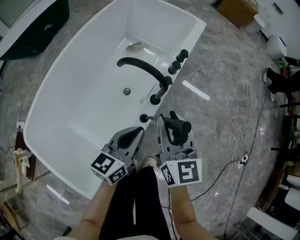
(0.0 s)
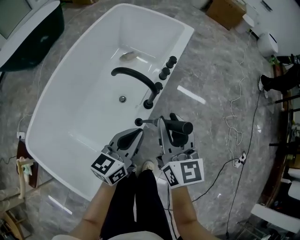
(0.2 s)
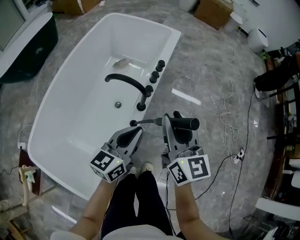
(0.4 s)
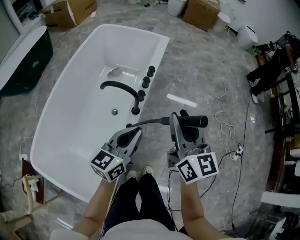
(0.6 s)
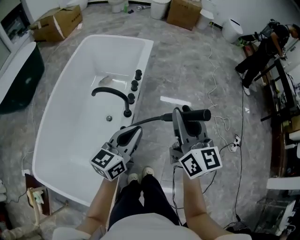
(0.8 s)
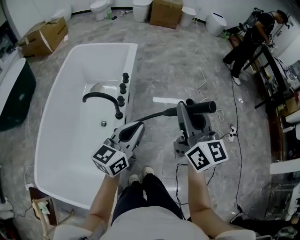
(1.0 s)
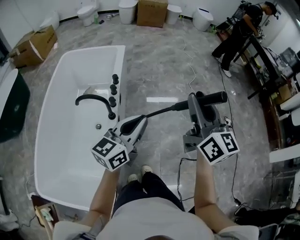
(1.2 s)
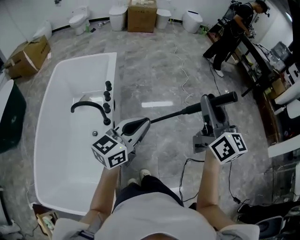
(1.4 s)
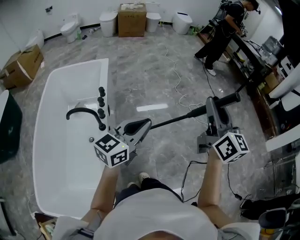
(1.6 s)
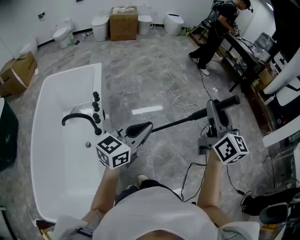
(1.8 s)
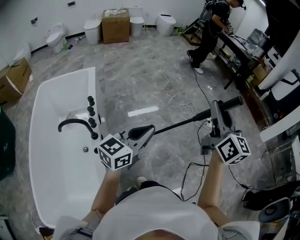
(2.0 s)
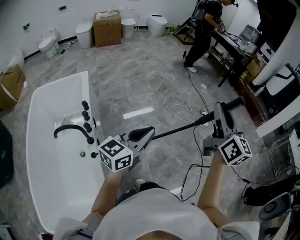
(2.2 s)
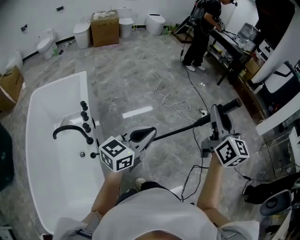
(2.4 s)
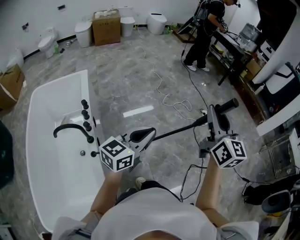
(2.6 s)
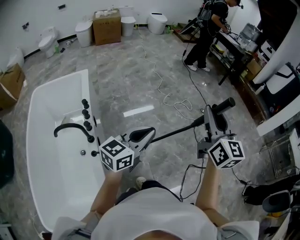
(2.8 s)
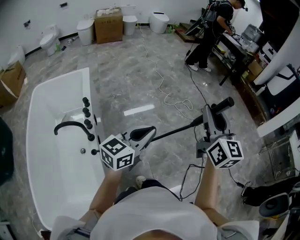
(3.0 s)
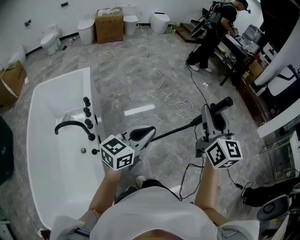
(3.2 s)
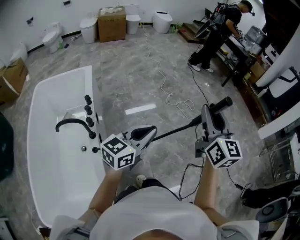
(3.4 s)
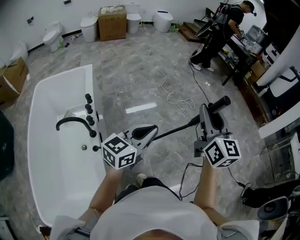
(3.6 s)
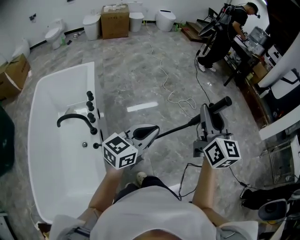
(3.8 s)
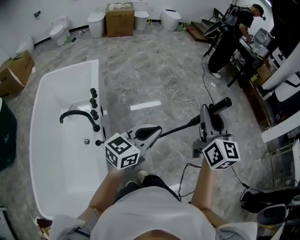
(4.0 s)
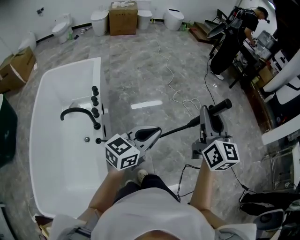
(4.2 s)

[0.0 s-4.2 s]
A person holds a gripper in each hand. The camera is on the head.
0.0 to 1.4 s: The right gripper ends up roughly 50 cm from where it was, and turns by about 40 degrees, while the left gripper is displaced upward by roughly 25 cm, and rotates about 50 degrees.
1.4 to 2.8 s: The grippers both shift to the right by some 10 cm. The right gripper rotates approximately 20 degrees.
2.8 to 4.2 s: The right gripper moves approximately 5 cm.

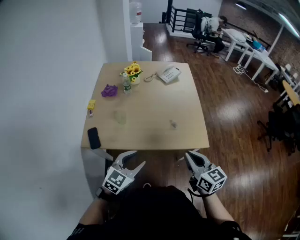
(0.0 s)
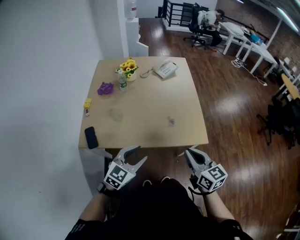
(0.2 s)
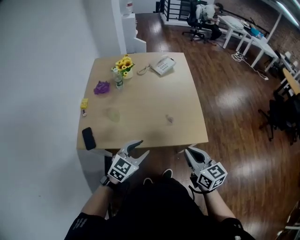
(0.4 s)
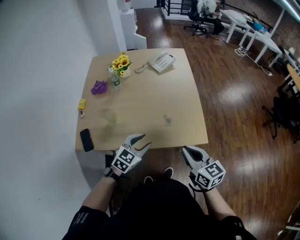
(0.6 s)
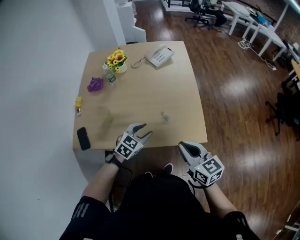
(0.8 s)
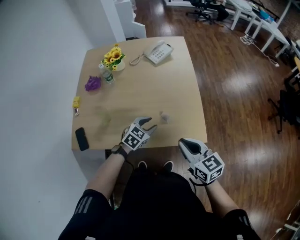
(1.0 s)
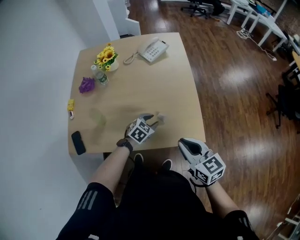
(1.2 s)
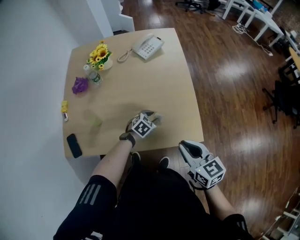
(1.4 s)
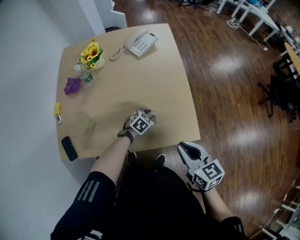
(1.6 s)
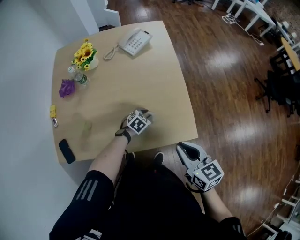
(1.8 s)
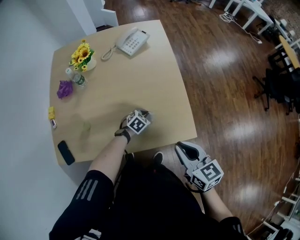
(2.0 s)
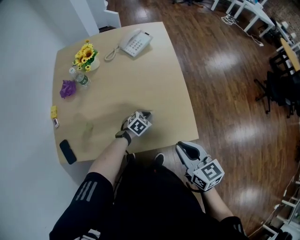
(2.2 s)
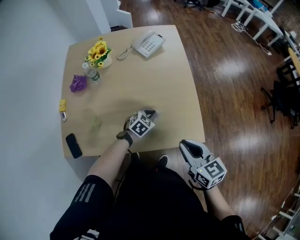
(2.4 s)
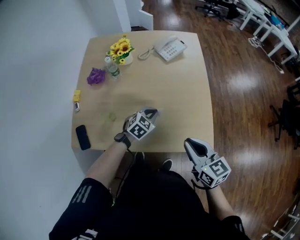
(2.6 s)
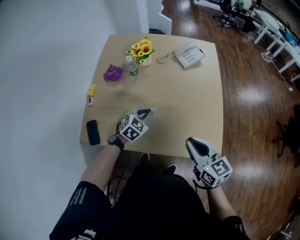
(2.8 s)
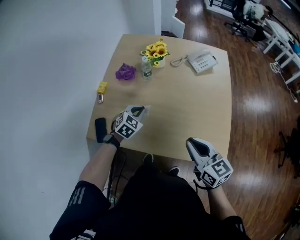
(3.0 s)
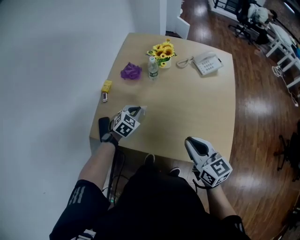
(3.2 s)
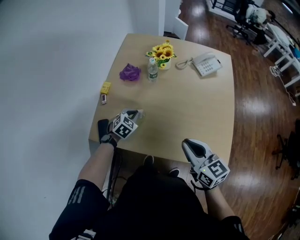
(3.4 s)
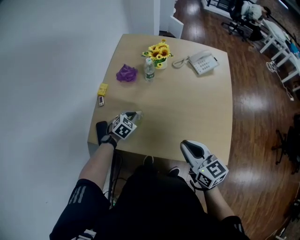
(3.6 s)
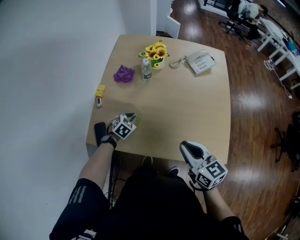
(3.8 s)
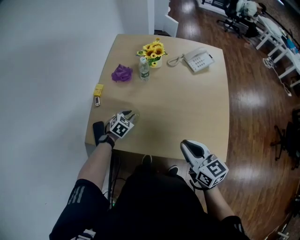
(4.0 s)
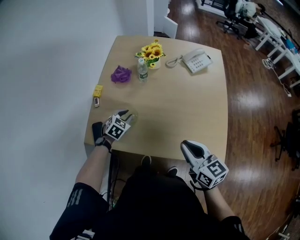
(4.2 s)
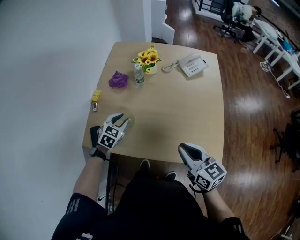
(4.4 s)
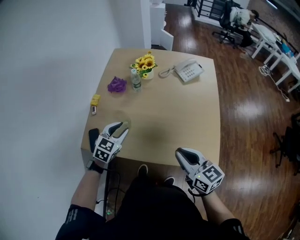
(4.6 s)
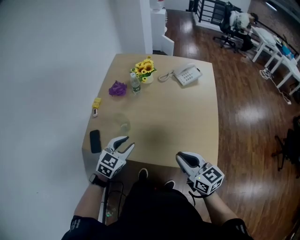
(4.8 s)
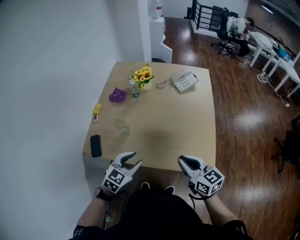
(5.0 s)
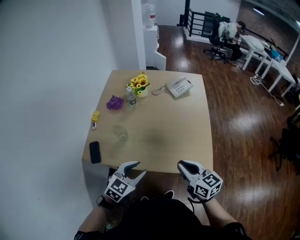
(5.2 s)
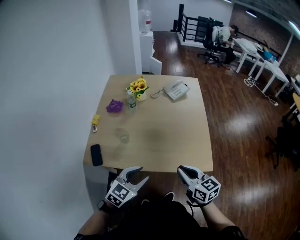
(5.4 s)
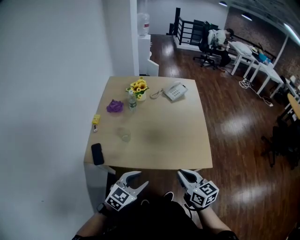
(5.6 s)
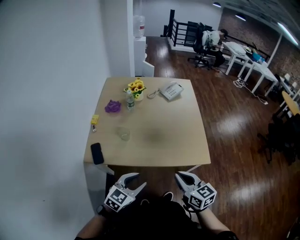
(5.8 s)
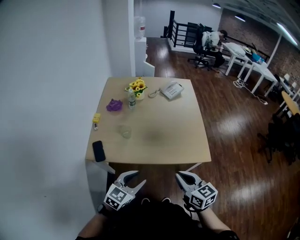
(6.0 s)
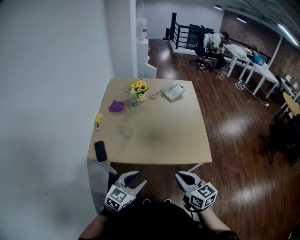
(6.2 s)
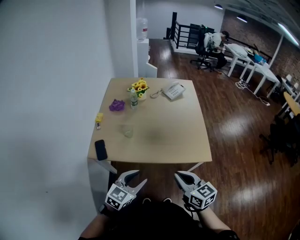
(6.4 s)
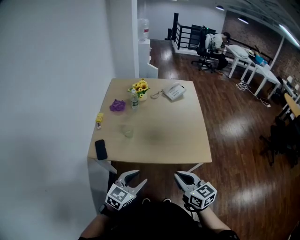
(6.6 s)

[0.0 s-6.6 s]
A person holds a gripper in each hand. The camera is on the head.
0.0 to 1.6 s: The right gripper shifts approximately 20 cm forward, to the right and downward. Meanwhile the left gripper travels forward, downward and to the right by some 50 cm, and angles its fingers downward, by some 30 degrees.
1.6 to 3.2 s: The left gripper moves about 40 cm, changes its angle by approximately 30 degrees, and closes up; the right gripper shifts by roughly 25 cm, and swivels some 20 degrees.
3.2 to 5.0 s: The left gripper is displaced backward, upward and to the right by approximately 25 cm, and opens its fingers. Meanwhile the right gripper travels backward and to the right by about 10 cm.
5.0 to 6.6 s: Both grippers move backward, some 20 cm.

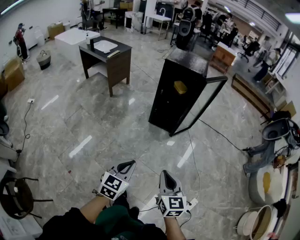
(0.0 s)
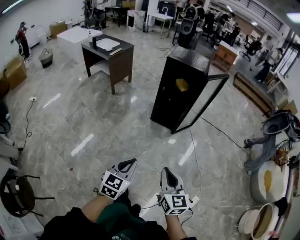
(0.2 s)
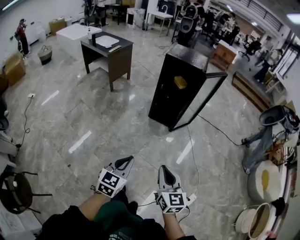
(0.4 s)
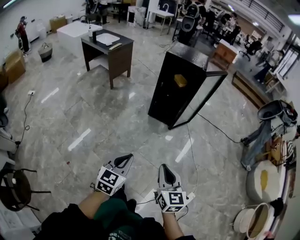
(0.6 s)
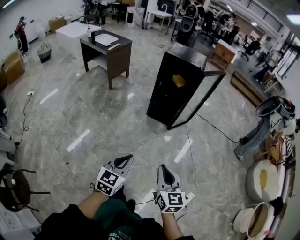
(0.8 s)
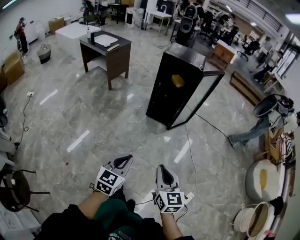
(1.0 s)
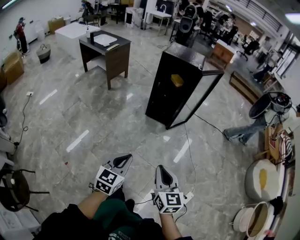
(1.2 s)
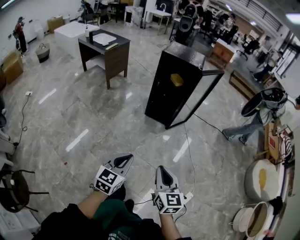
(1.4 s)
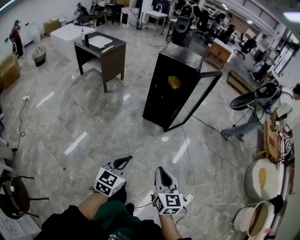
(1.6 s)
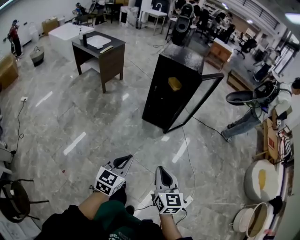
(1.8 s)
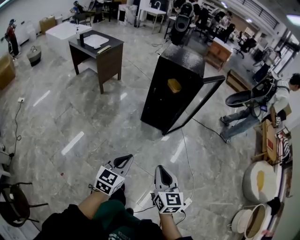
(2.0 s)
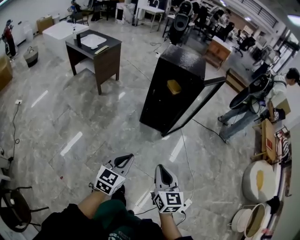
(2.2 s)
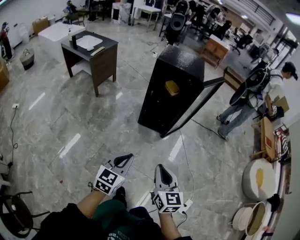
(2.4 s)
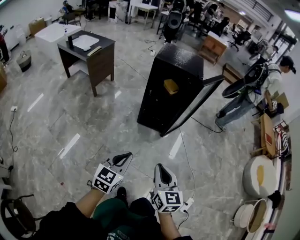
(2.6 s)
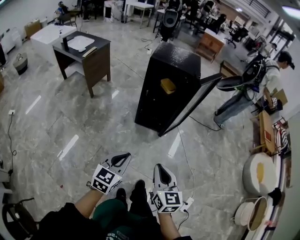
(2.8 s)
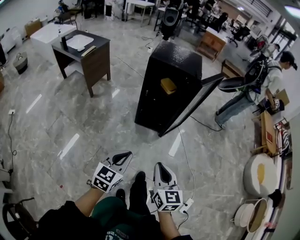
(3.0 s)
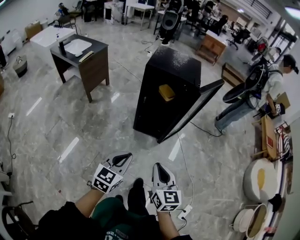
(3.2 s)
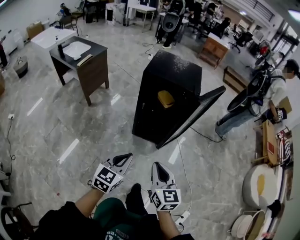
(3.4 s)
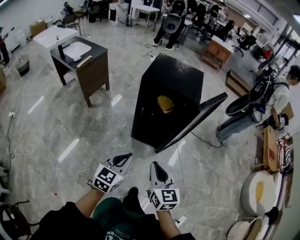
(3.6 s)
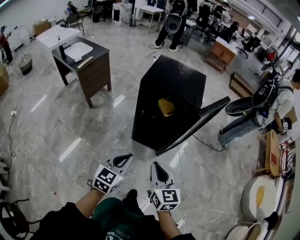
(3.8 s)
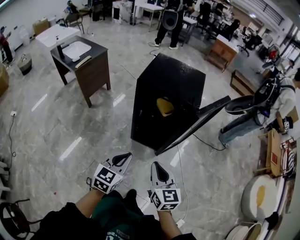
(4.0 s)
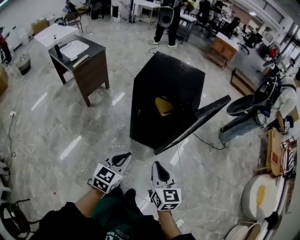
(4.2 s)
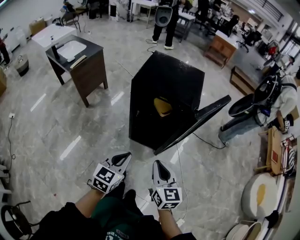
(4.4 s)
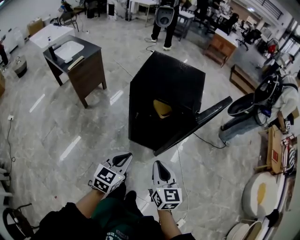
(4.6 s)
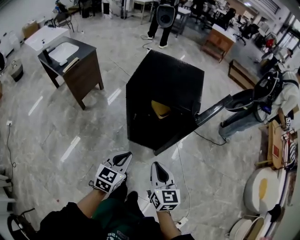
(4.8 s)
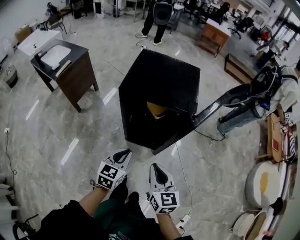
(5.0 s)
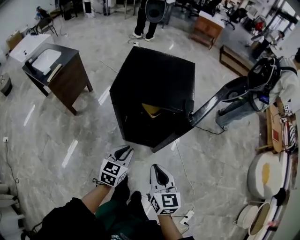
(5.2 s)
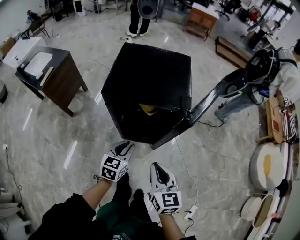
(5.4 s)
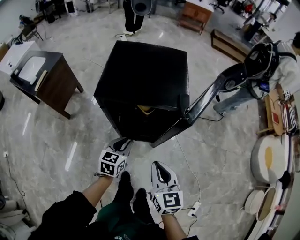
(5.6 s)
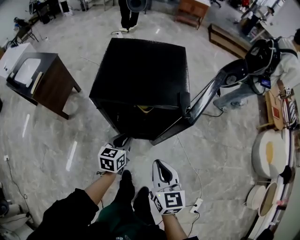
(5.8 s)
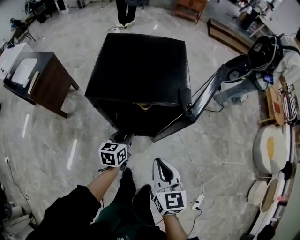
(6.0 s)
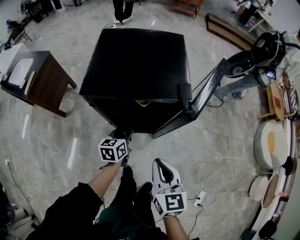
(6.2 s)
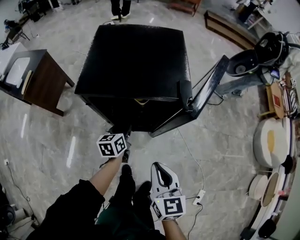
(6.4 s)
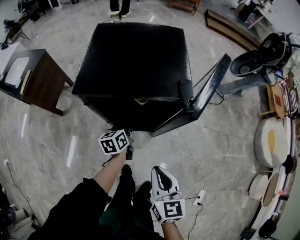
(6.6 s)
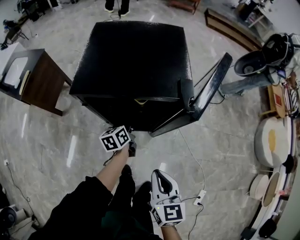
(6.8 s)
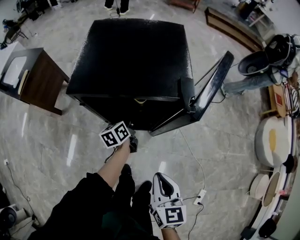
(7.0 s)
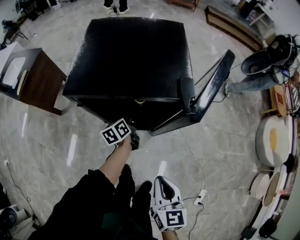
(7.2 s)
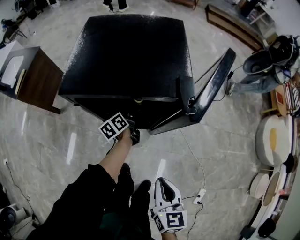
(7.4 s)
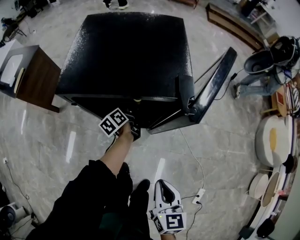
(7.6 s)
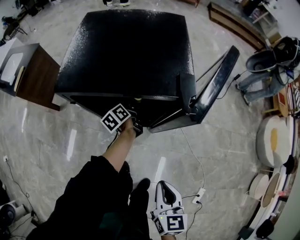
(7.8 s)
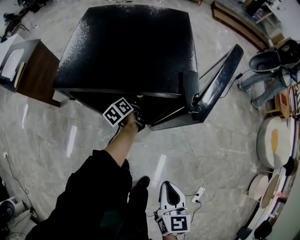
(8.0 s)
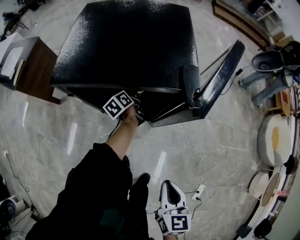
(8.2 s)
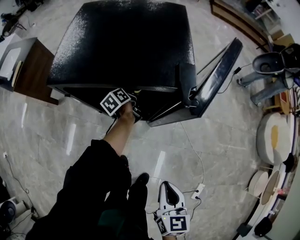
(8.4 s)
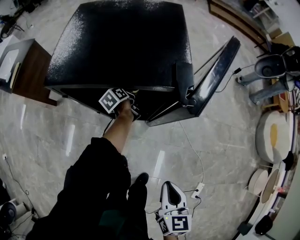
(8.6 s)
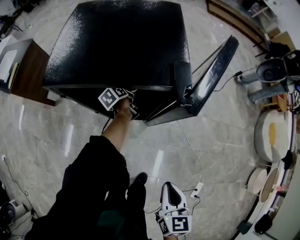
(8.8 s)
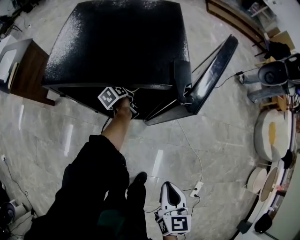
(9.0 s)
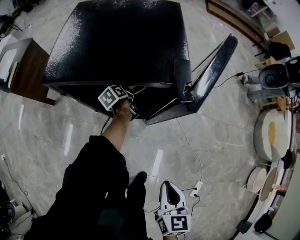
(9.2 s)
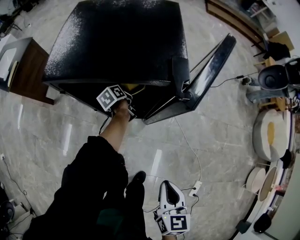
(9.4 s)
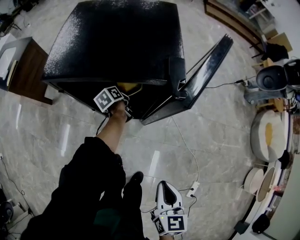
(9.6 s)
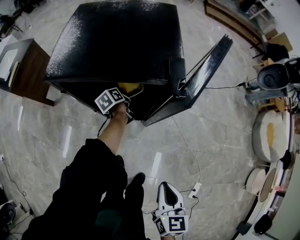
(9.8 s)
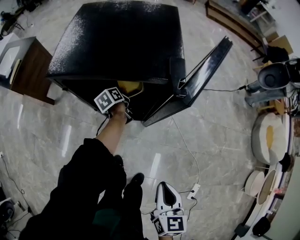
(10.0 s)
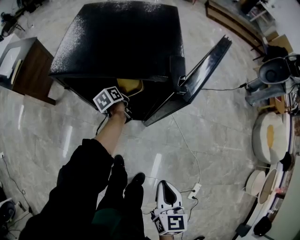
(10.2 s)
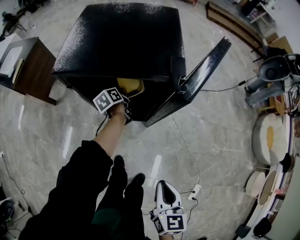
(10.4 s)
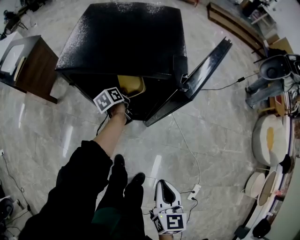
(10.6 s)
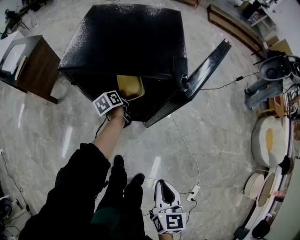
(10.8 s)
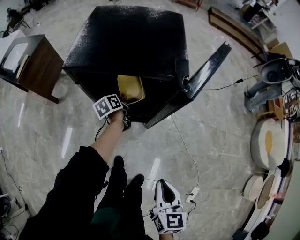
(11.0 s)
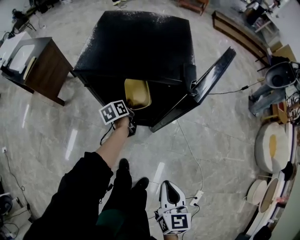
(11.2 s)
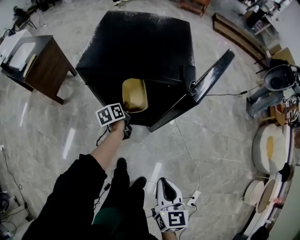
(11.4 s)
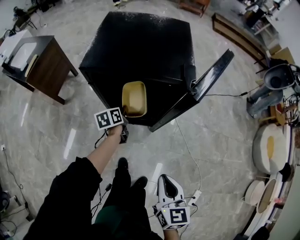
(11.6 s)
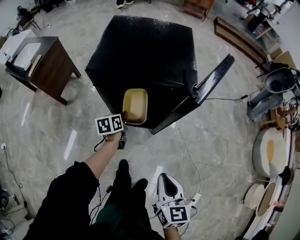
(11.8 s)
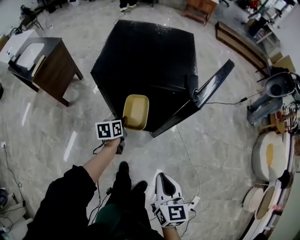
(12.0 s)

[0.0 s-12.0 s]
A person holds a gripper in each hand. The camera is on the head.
0.0 to 1.6 s: There are only small adjustments of the grippers.
1.6 to 3.0 s: The two grippers go about 25 cm forward.
3.0 to 4.4 s: Both grippers travel together forward, about 25 cm.
4.4 to 6.0 s: The left gripper heads forward and downward, covering some 30 cm, and swivels some 20 degrees, while the right gripper shifts some 10 cm forward.
6.0 to 7.6 s: The left gripper shifts roughly 20 cm forward and downward, and rotates around the line of its fingers by approximately 40 degrees, counterclockwise from behind. The right gripper heads downward and backward, covering about 10 cm.
7.6 to 9.0 s: The left gripper changes place by about 5 cm; the right gripper moves approximately 5 cm.
9.0 to 10.4 s: The left gripper ends up approximately 5 cm from where it was.
10.4 to 12.0 s: The right gripper shifts approximately 5 cm to the left. Meanwhile the left gripper goes about 15 cm backward and upward, and rotates about 20 degrees.

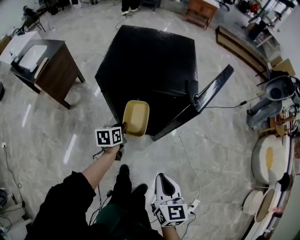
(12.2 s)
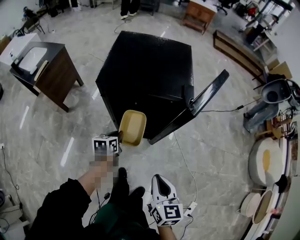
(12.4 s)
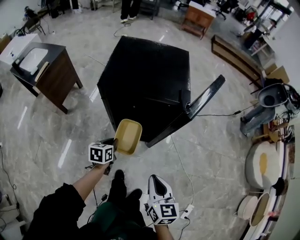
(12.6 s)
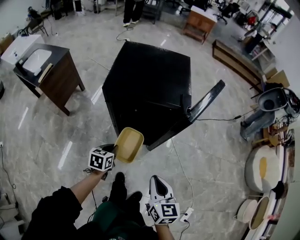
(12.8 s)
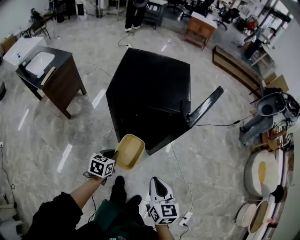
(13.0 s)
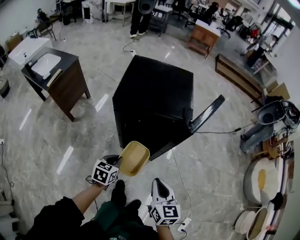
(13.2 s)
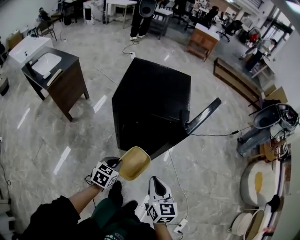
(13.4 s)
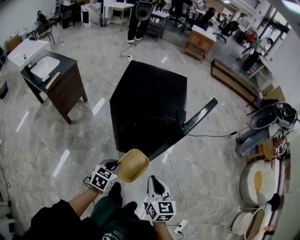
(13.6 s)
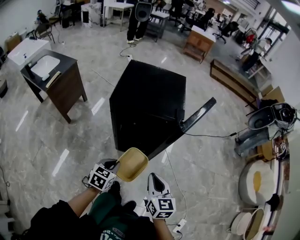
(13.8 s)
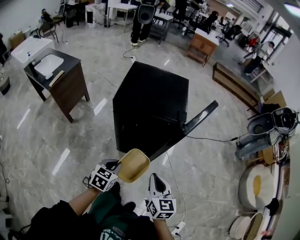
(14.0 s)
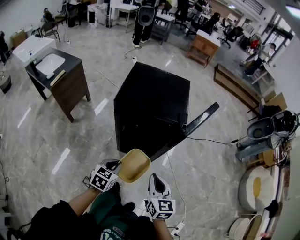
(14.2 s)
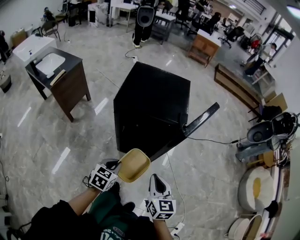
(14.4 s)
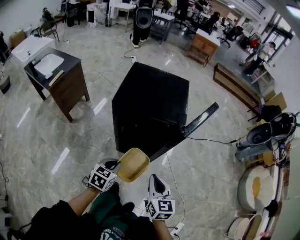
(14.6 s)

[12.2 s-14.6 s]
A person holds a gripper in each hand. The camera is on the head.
12.2 to 13.4 s: The right gripper ends up roughly 5 cm from where it was, while the left gripper shifts roughly 15 cm backward and upward, and turns by some 30 degrees.
13.4 to 14.6 s: The grippers move only a little.
